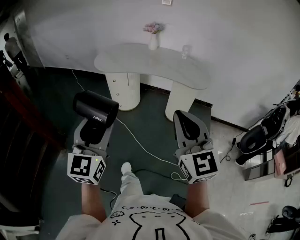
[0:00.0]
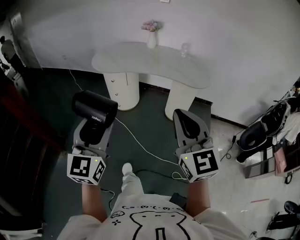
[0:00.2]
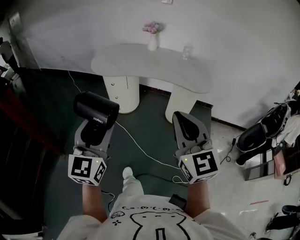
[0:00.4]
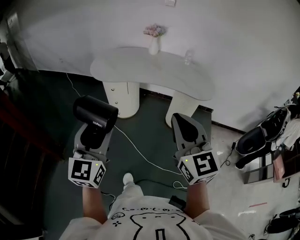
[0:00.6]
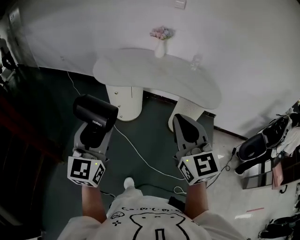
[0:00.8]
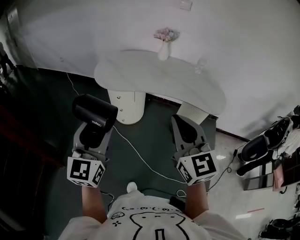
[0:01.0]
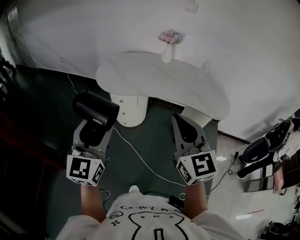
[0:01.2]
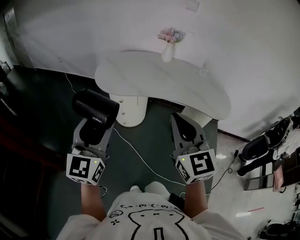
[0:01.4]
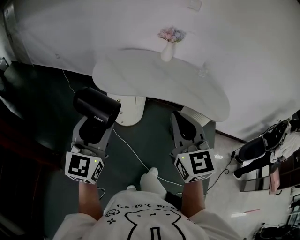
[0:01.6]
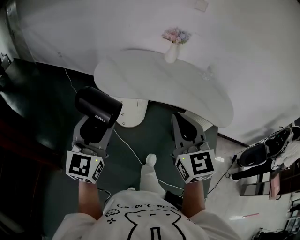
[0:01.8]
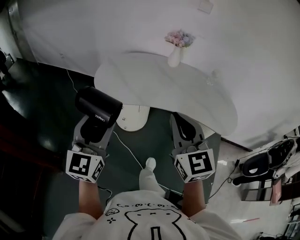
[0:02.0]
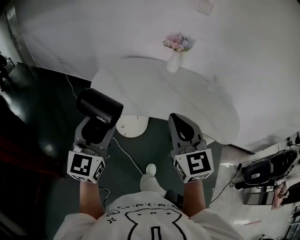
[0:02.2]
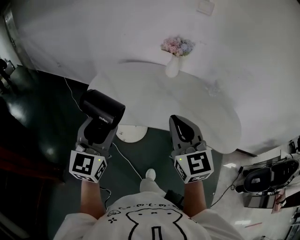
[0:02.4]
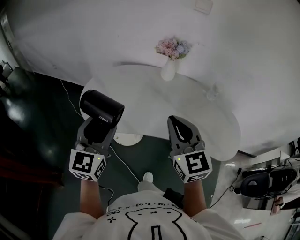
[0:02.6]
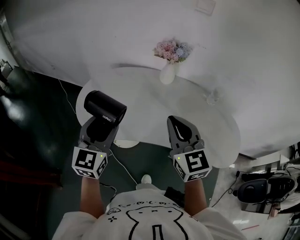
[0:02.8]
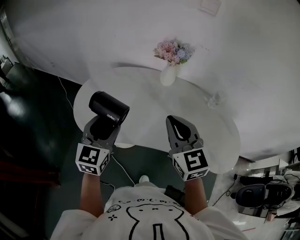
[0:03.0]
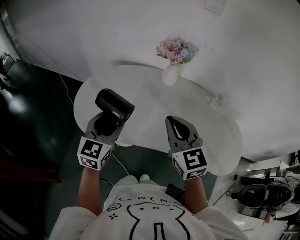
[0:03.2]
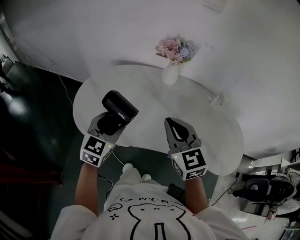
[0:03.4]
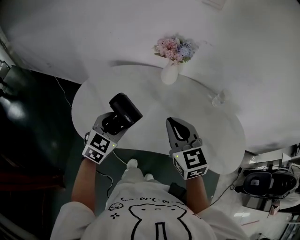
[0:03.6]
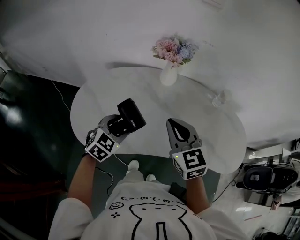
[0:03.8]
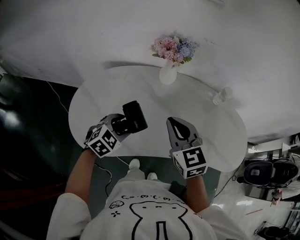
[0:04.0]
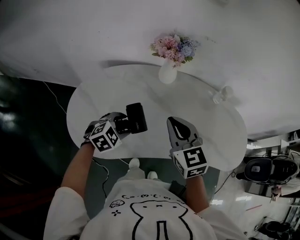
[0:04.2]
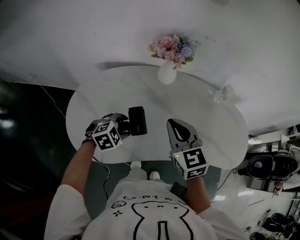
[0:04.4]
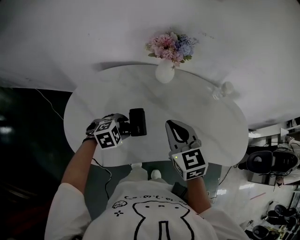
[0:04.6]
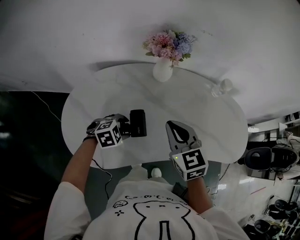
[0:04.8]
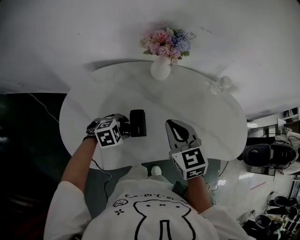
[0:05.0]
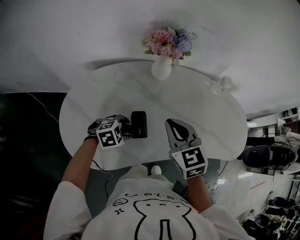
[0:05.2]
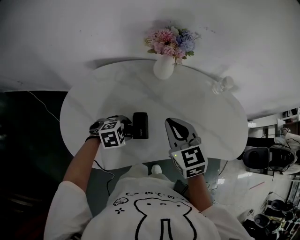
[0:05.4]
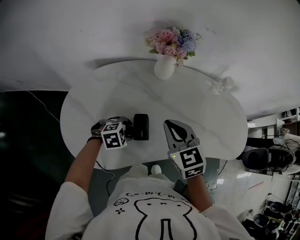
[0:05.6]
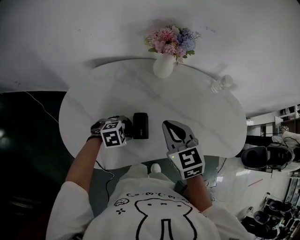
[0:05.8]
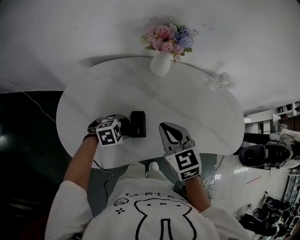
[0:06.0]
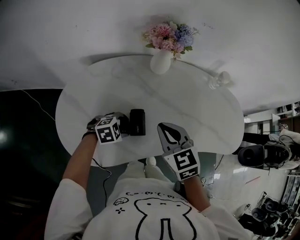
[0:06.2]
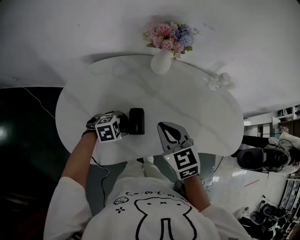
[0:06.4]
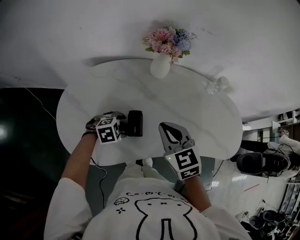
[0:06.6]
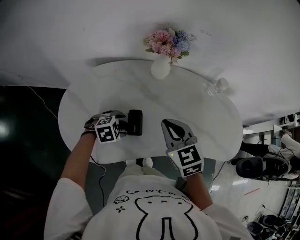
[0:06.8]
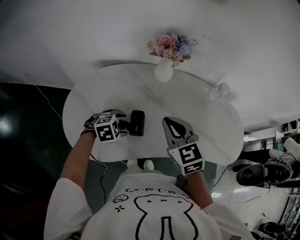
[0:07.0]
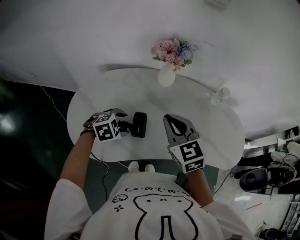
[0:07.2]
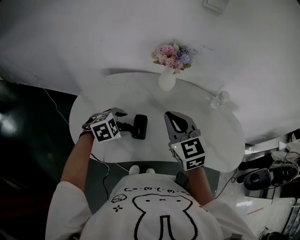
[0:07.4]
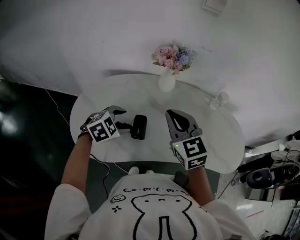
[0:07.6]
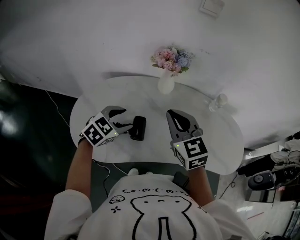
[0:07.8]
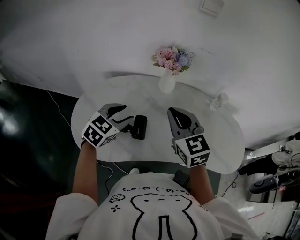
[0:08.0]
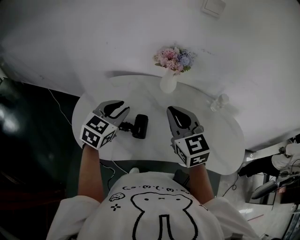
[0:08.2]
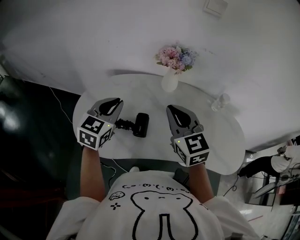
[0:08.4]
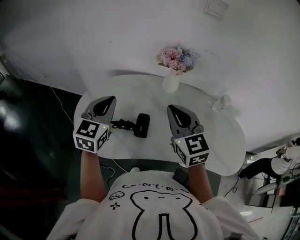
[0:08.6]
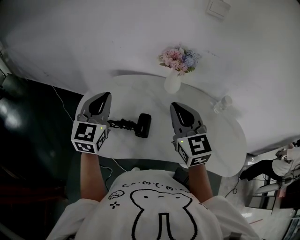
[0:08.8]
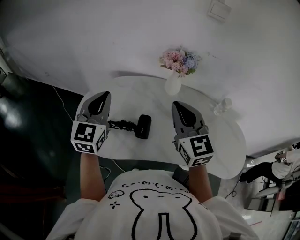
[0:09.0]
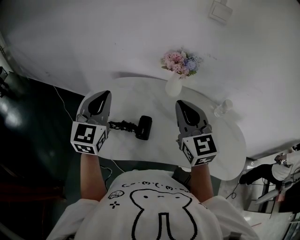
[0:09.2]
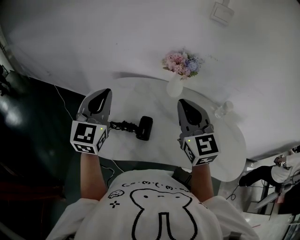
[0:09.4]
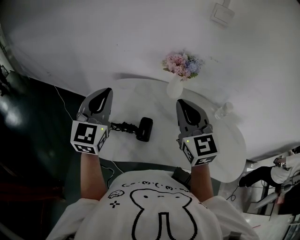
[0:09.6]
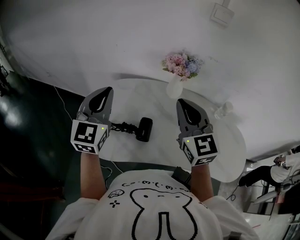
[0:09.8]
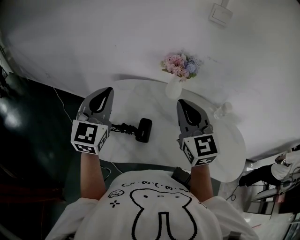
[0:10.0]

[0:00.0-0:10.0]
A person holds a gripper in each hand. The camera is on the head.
0:00.0 to 0:01.4: The two grippers go roughly 25 cm forward and to the left.
0:01.4 to 0:02.8: The two grippers go some 35 cm forward.
0:02.8 to 0:04.2: The left gripper shifts about 25 cm downward and forward, and angles its fingers downward, by approximately 50 degrees. The right gripper moves forward and downward, roughly 15 cm.
0:04.2 to 0:05.8: The right gripper shifts some 5 cm downward; the left gripper shifts approximately 10 cm downward, and turns by approximately 30 degrees.
0:05.8 to 0:07.2: The grippers both shift upward by about 5 cm.
0:07.2 to 0:08.6: The left gripper heads upward, covering approximately 20 cm, tilts its fingers approximately 50 degrees upward, and closes. Meanwhile the right gripper heads upward, covering roughly 5 cm.
0:08.6 to 0:10.0: The left gripper travels upward by roughly 5 cm.

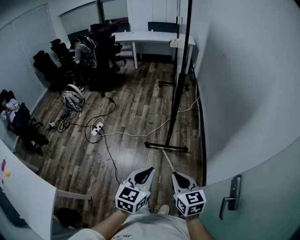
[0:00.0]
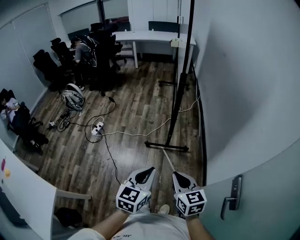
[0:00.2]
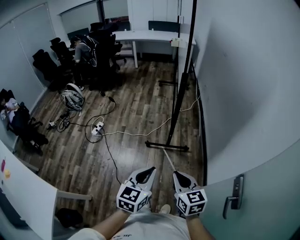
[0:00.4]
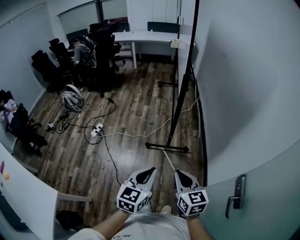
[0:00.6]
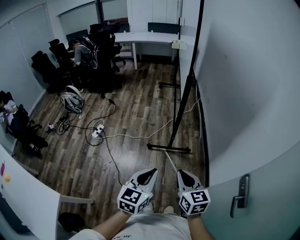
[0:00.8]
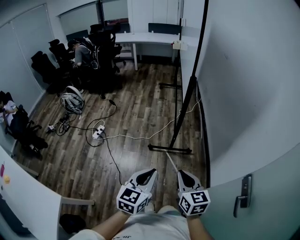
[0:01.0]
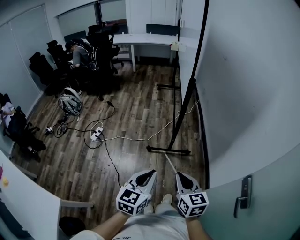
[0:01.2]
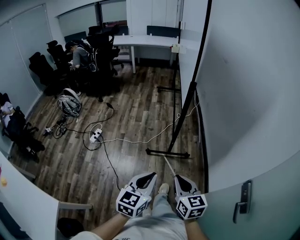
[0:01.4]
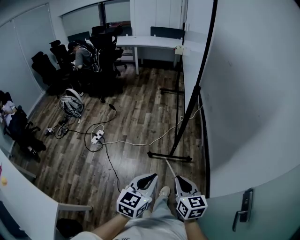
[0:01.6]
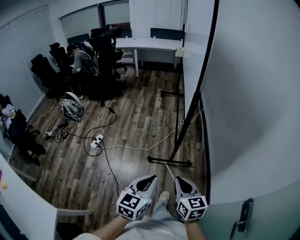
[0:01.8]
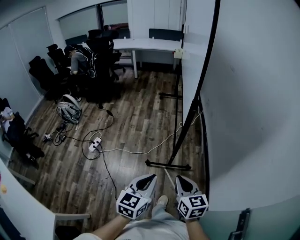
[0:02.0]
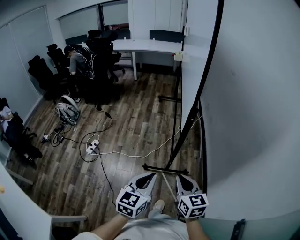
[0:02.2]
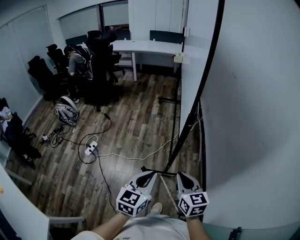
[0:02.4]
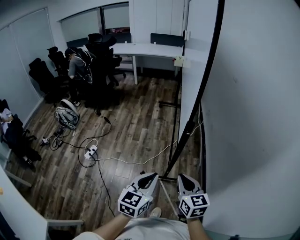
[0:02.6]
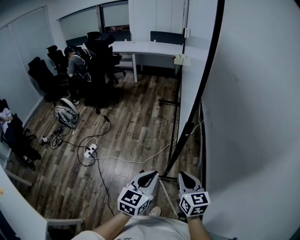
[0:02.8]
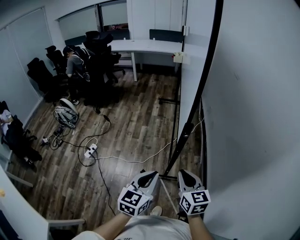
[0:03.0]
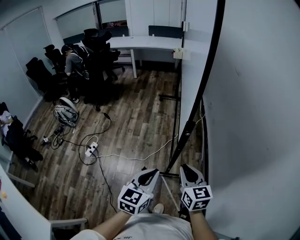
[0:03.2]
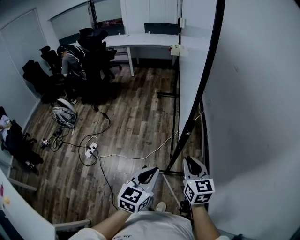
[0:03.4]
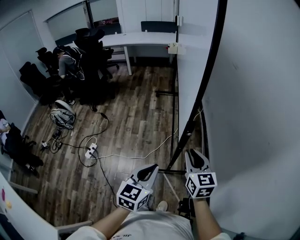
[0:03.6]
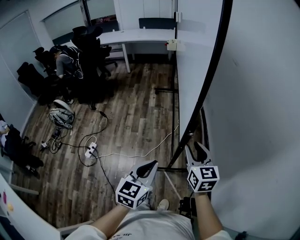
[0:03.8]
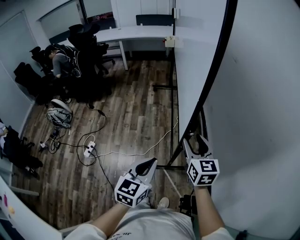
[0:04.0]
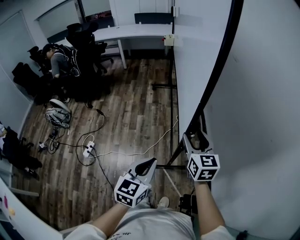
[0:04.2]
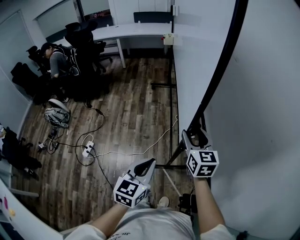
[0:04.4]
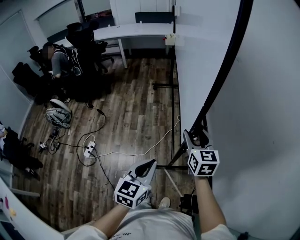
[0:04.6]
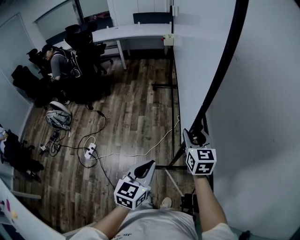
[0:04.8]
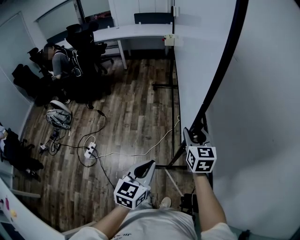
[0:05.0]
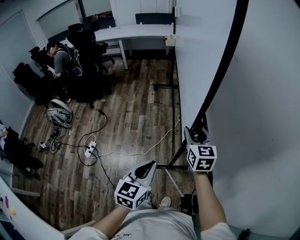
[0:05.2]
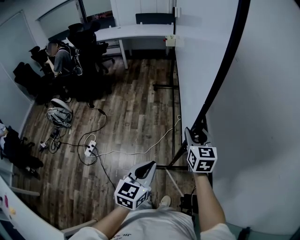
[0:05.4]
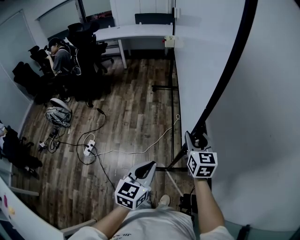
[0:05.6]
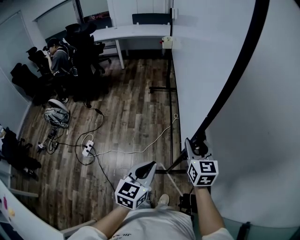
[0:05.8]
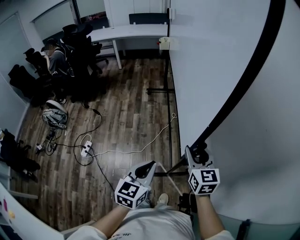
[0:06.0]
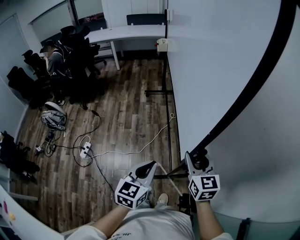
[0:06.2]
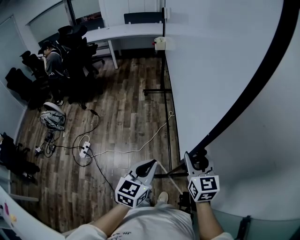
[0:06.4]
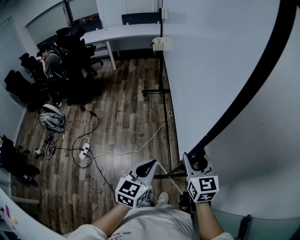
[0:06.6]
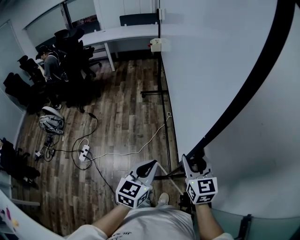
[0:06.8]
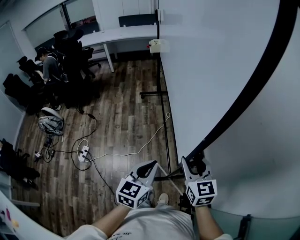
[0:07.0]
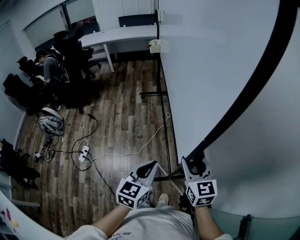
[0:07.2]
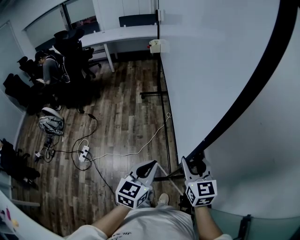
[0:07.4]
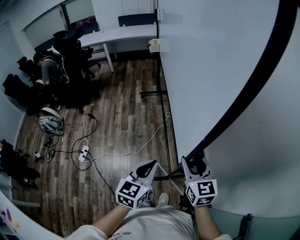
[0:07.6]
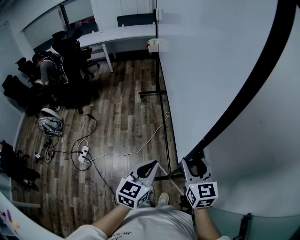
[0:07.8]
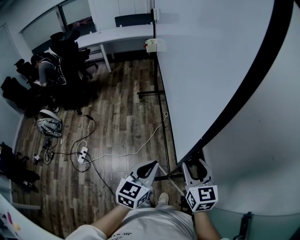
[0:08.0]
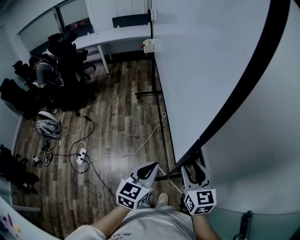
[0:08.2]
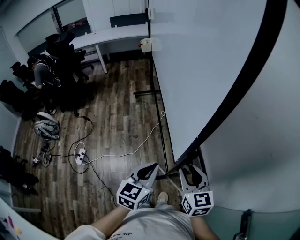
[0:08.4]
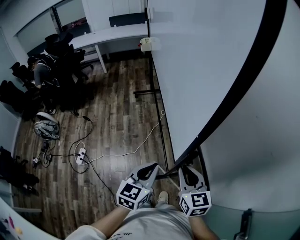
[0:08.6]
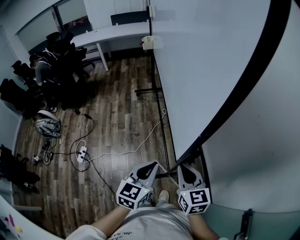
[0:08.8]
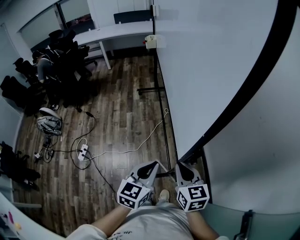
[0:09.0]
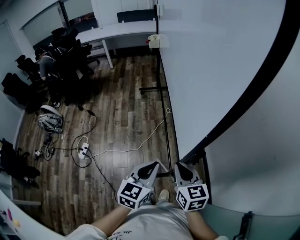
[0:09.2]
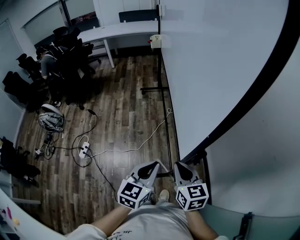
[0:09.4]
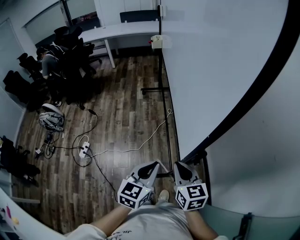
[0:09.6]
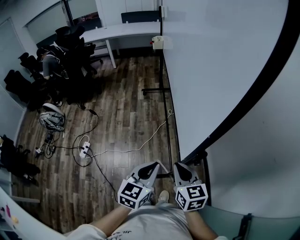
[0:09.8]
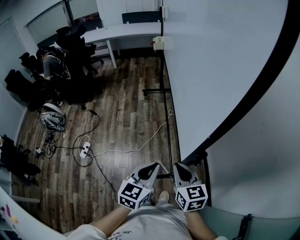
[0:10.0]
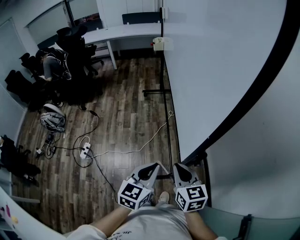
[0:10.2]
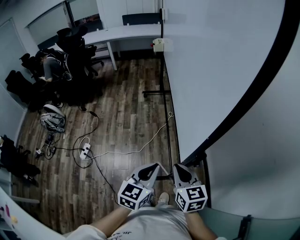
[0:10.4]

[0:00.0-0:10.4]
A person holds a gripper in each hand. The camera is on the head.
0:00.0 to 0:01.4: The two grippers go roughly 5 cm to the left.
0:01.4 to 0:03.0: Both grippers move forward, about 30 cm.
0:03.0 to 0:04.4: The left gripper shifts roughly 10 cm forward, while the right gripper travels forward by about 20 cm, and opens.
0:04.4 to 0:06.0: The right gripper shifts about 10 cm backward; the left gripper shifts by approximately 5 cm.
0:06.0 to 0:07.4: The right gripper ends up about 5 cm from where it was.
0:07.4 to 0:09.0: The right gripper changes place by about 5 cm, and closes its fingers.
0:09.0 to 0:10.4: The grippers move only a little.

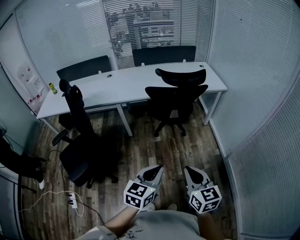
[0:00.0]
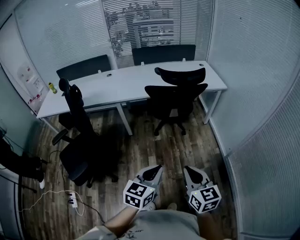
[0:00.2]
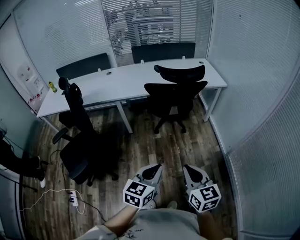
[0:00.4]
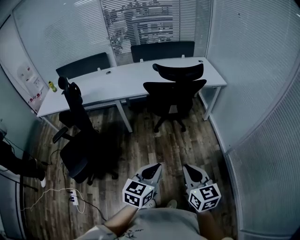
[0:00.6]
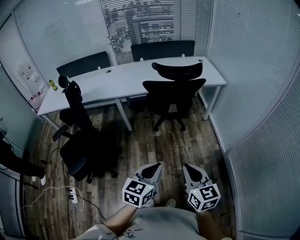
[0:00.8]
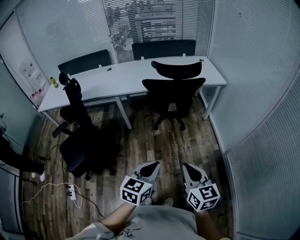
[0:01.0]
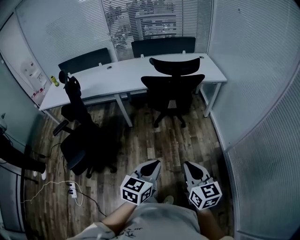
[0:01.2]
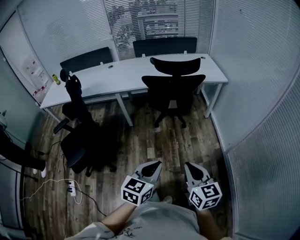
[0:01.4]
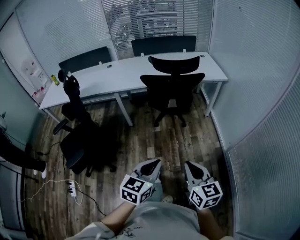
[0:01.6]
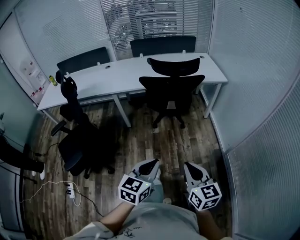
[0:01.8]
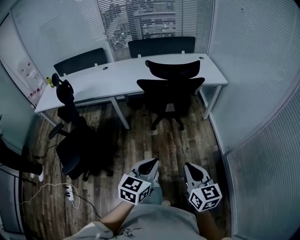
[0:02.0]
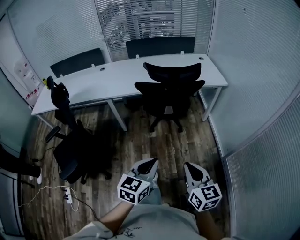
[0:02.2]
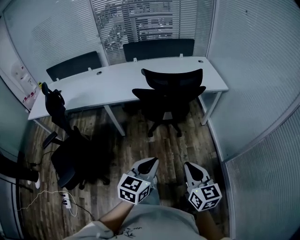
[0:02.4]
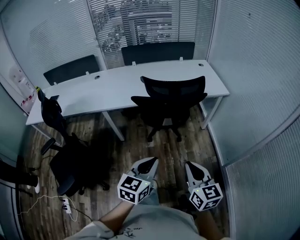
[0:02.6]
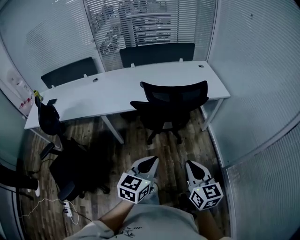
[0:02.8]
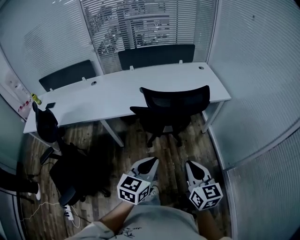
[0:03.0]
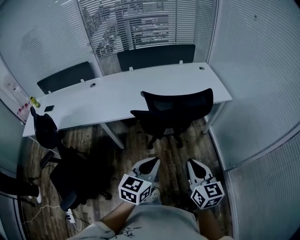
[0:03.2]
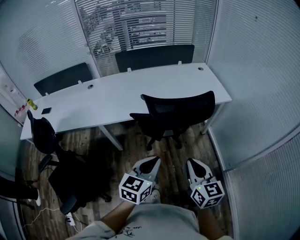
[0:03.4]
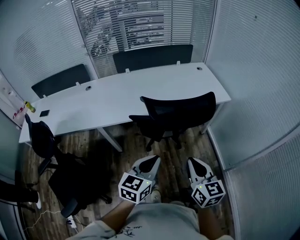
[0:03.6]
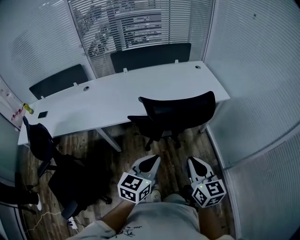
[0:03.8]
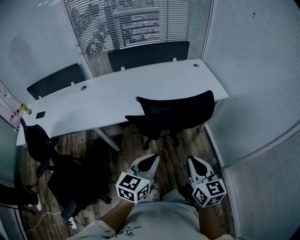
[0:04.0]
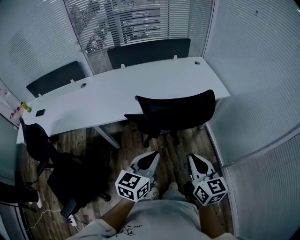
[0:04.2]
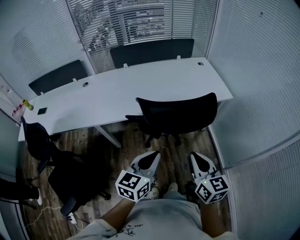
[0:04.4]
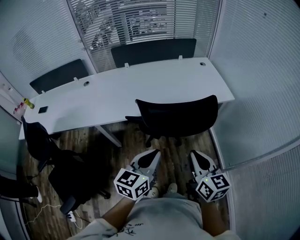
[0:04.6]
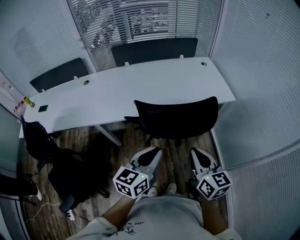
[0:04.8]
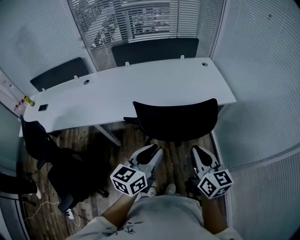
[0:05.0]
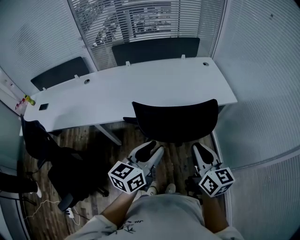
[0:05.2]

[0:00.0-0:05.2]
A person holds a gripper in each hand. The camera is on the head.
0:00.0 to 0:01.8: Both grippers travel together to the right, some 5 cm.
0:01.8 to 0:03.4: The two grippers go approximately 35 cm forward.
0:03.4 to 0:05.2: The grippers both shift forward by approximately 15 cm. The left gripper opens.
